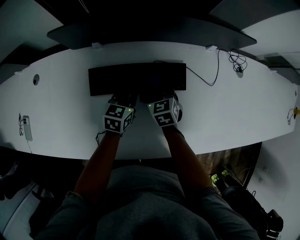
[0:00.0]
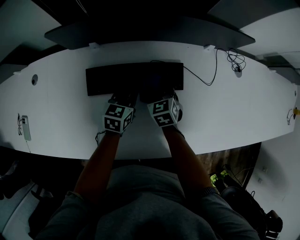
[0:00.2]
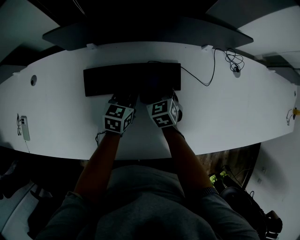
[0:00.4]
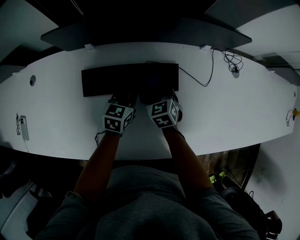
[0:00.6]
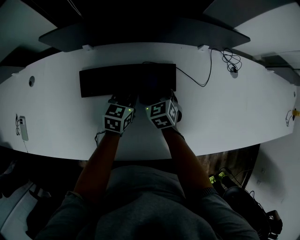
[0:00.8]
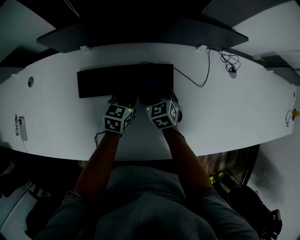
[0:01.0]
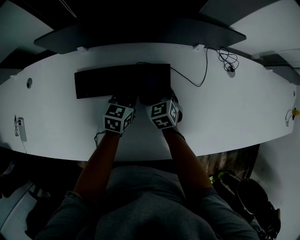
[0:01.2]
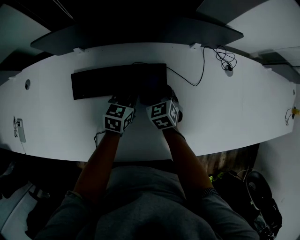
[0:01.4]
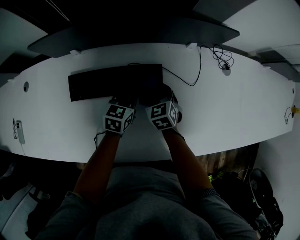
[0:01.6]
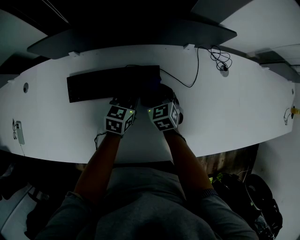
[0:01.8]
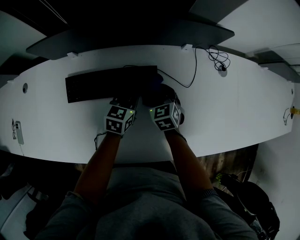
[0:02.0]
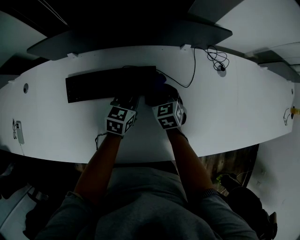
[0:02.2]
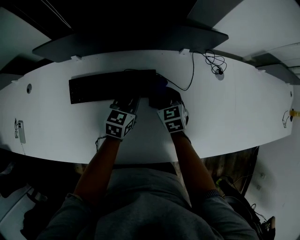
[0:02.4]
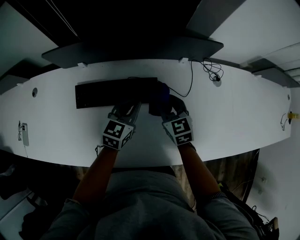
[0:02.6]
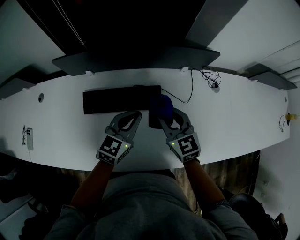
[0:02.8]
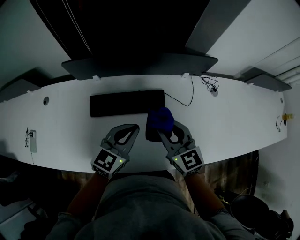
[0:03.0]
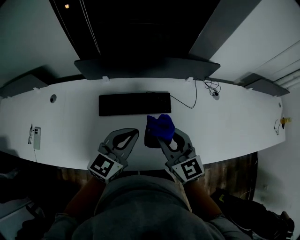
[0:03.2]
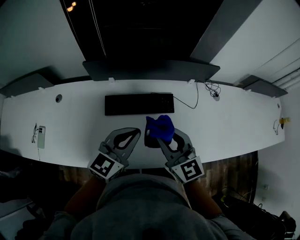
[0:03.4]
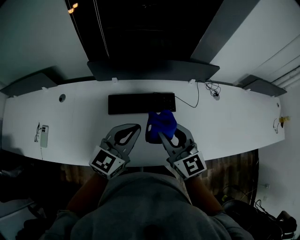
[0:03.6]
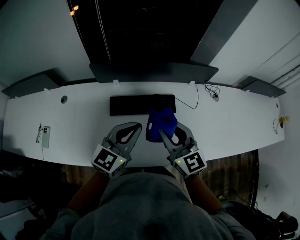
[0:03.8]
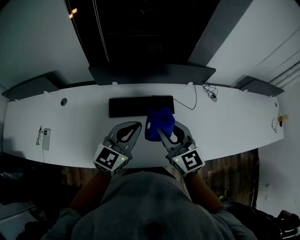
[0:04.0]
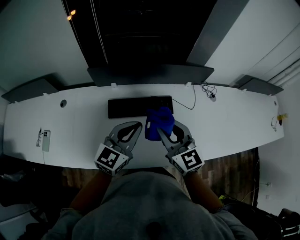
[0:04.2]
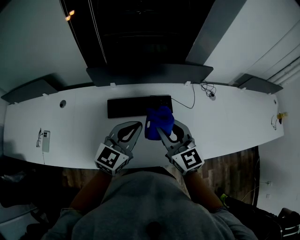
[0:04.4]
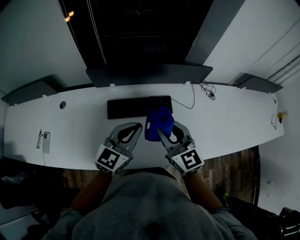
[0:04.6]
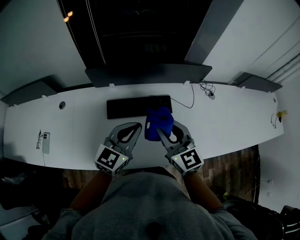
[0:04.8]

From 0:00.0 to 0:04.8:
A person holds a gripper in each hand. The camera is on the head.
From 0:00.0 to 0:01.6: Both grippers travel together to the right, roughly 10 cm.
From 0:01.6 to 0:03.2: Both grippers travel together upward and backward, roughly 30 cm. The left gripper swivels about 20 degrees. The right gripper tilts its fingers approximately 30 degrees upward.
From 0:03.2 to 0:04.8: The grippers both shift upward by roughly 5 cm.

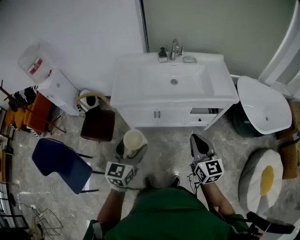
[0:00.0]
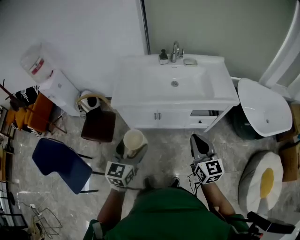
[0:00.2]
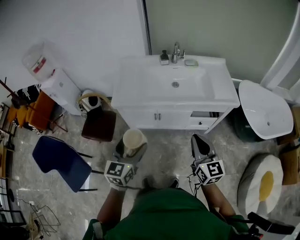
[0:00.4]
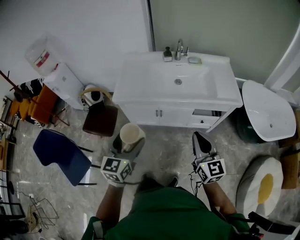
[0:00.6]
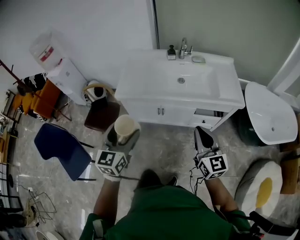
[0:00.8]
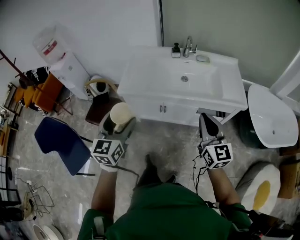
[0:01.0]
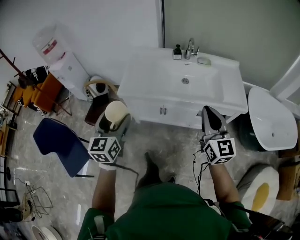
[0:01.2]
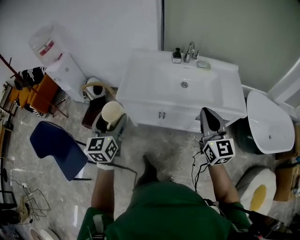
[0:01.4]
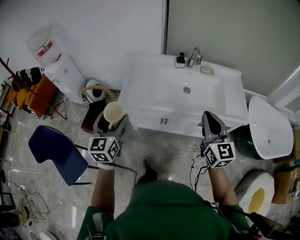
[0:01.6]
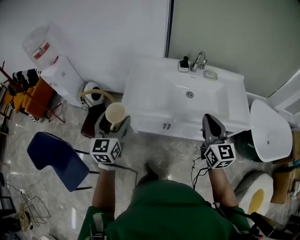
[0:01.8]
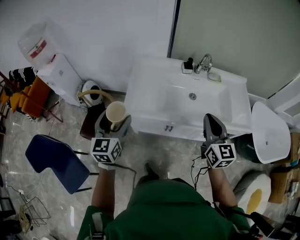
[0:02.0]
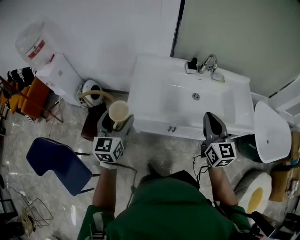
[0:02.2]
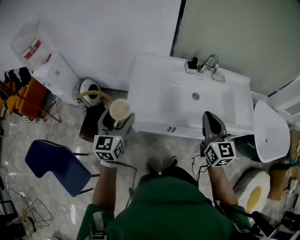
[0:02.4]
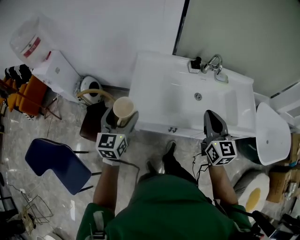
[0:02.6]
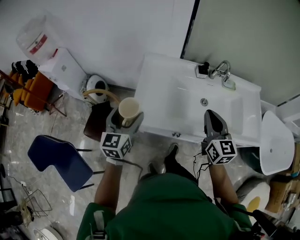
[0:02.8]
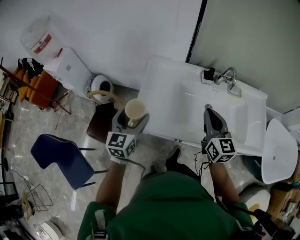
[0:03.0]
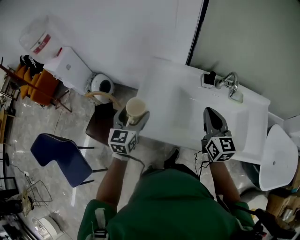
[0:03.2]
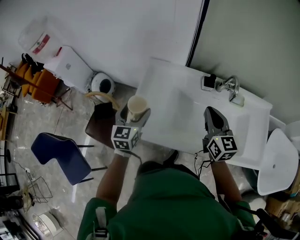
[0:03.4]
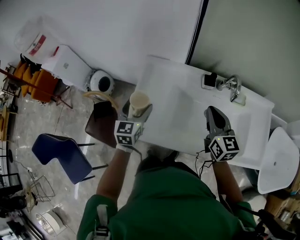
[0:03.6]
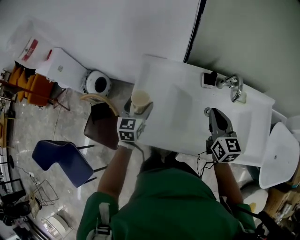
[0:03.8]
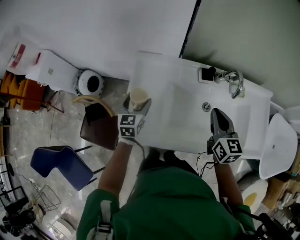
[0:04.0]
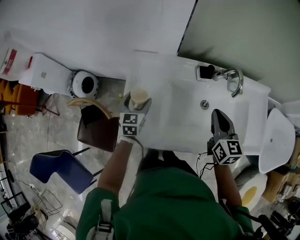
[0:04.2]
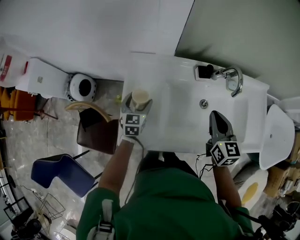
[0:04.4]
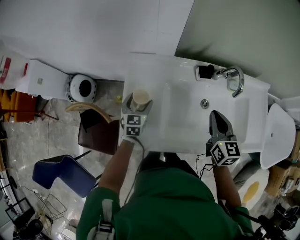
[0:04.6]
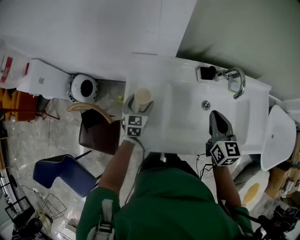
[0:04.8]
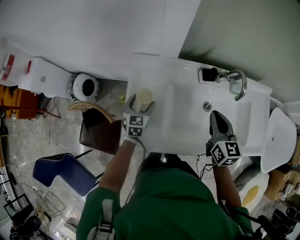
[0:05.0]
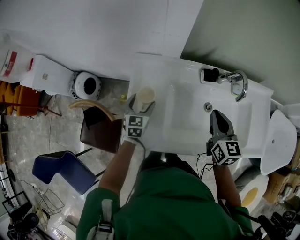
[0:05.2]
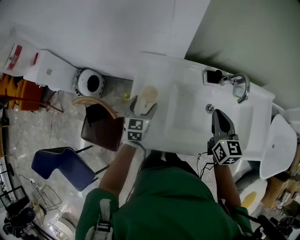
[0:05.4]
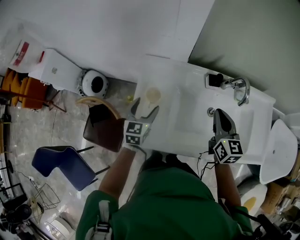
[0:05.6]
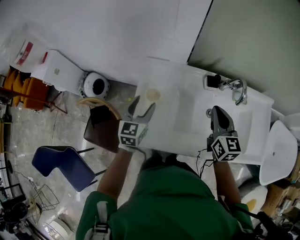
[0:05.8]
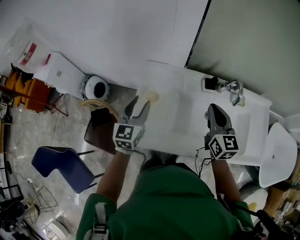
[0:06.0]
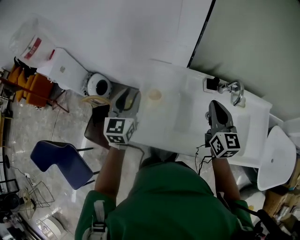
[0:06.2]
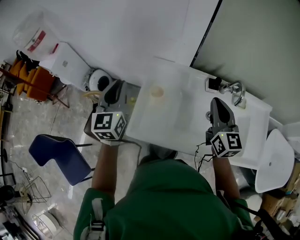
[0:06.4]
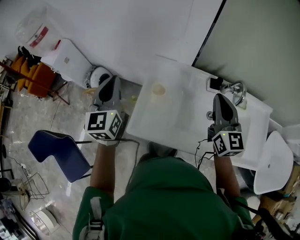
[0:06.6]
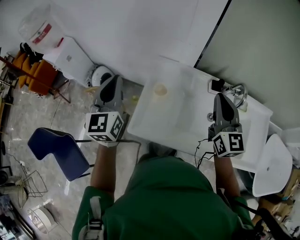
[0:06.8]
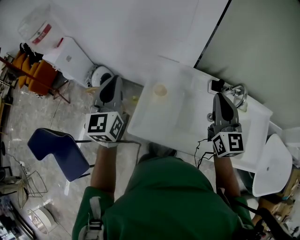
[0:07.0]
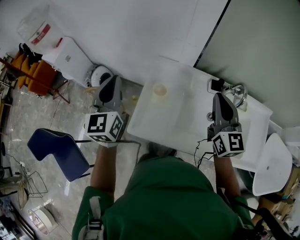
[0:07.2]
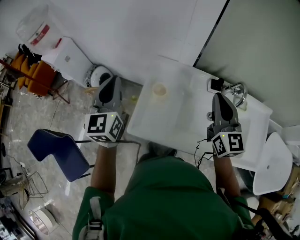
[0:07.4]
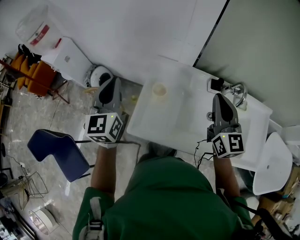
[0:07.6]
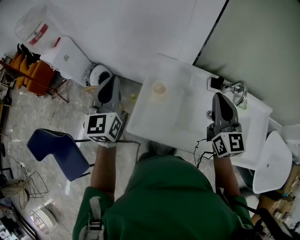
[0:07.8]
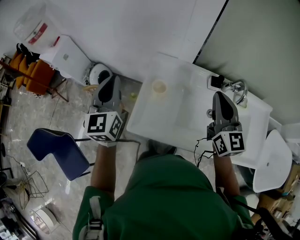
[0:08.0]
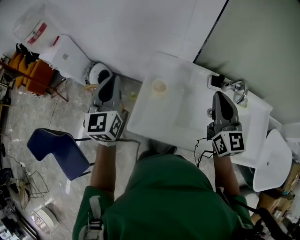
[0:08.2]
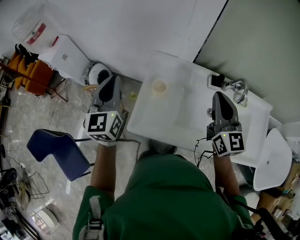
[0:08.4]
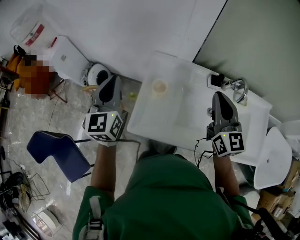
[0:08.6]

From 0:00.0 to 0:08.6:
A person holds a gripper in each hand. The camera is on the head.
From 0:00.0 to 0:01.4: The left gripper heads forward, to the left and upward, covering about 15 cm, and swivels some 20 degrees. The right gripper heads forward and upward, covering roughly 15 cm.
From 0:01.4 to 0:02.8: The right gripper moves forward and to the left, approximately 30 cm; the left gripper heads forward, covering roughly 25 cm.
From 0:02.8 to 0:04.4: The left gripper moves forward and downward, approximately 35 cm; the right gripper is displaced forward and downward by approximately 20 cm.
From 0:04.4 to 0:05.8: The right gripper ends up roughly 5 cm from where it was. The left gripper shifts about 10 cm upward.
From 0:05.8 to 0:07.2: The left gripper is displaced upward and to the left by about 25 cm, changes its angle by some 30 degrees, and closes. Meanwhile the right gripper goes about 10 cm upward and to the left.
From 0:07.2 to 0:08.6: There are only small adjustments of the grippers.

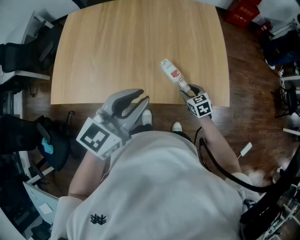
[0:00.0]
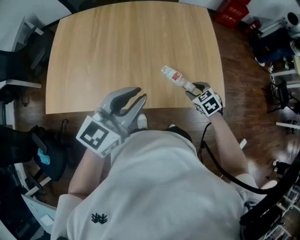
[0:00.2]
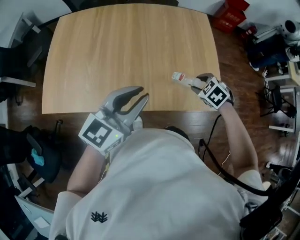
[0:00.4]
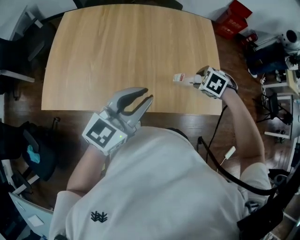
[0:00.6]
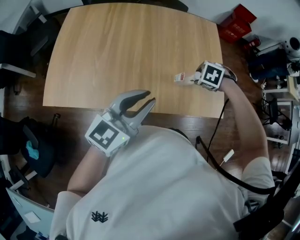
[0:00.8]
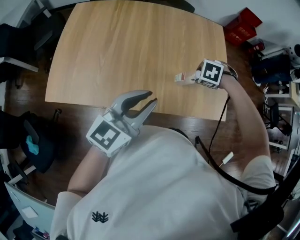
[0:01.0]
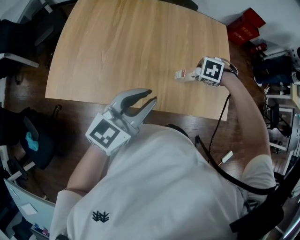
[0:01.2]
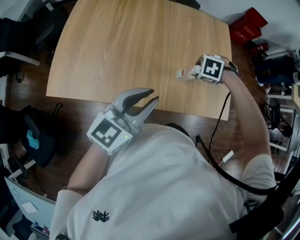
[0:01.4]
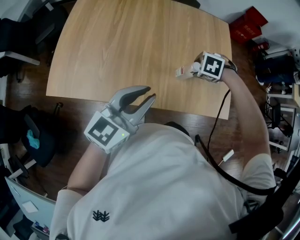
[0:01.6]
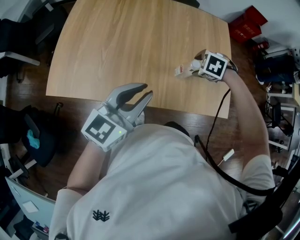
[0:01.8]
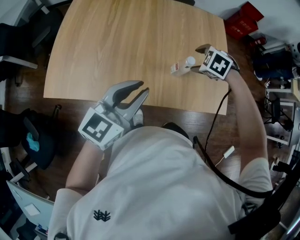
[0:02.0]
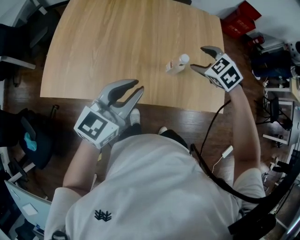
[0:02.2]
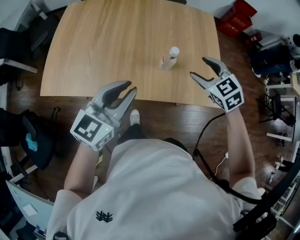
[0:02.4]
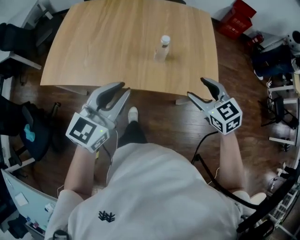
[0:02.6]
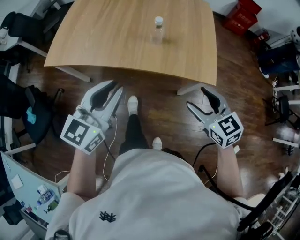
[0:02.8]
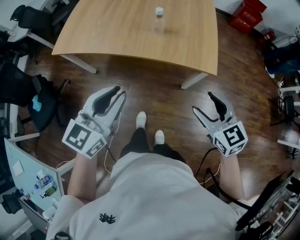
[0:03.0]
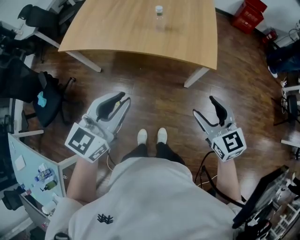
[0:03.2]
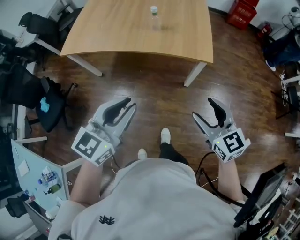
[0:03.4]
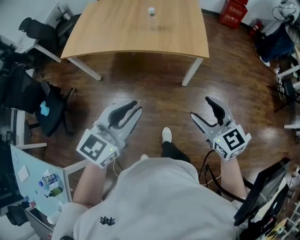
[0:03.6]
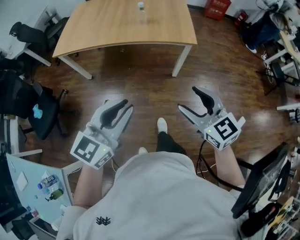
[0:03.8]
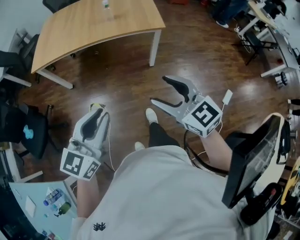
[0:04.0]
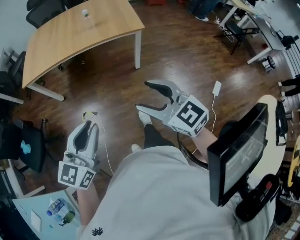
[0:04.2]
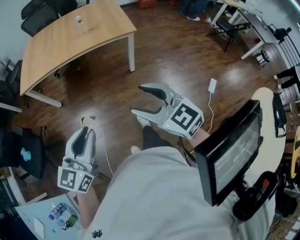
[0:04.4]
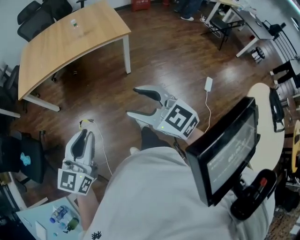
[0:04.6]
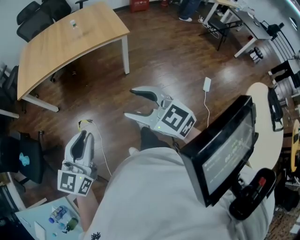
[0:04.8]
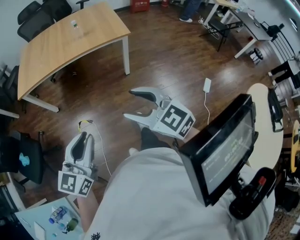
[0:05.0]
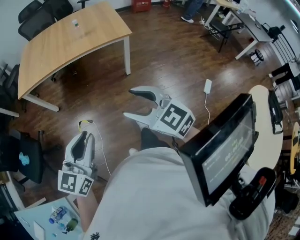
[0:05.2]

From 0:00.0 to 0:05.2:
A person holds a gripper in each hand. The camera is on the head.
From 0:00.0 to 0:01.8: The left gripper shifts by about 10 cm, while the right gripper travels upward by some 15 cm, and tilts its fingers approximately 40 degrees downward.
From 0:01.8 to 0:03.4: The right gripper changes place by roughly 50 cm, and tilts its fingers roughly 60 degrees upward; the left gripper changes place by some 35 cm.
From 0:03.4 to 0:05.2: The left gripper is displaced backward by about 20 cm. The right gripper shifts roughly 25 cm backward and to the left.

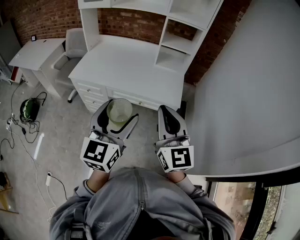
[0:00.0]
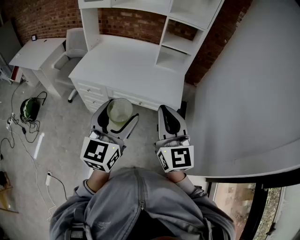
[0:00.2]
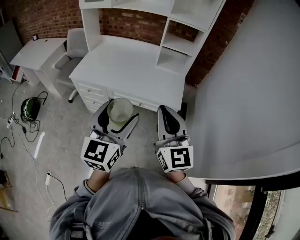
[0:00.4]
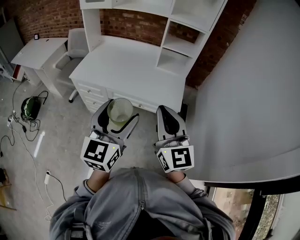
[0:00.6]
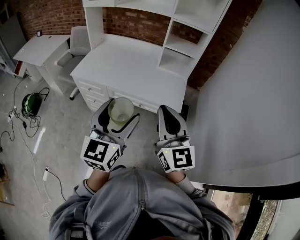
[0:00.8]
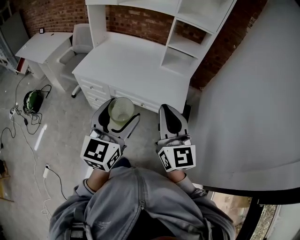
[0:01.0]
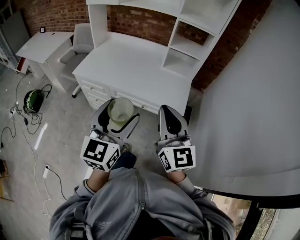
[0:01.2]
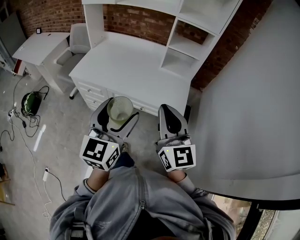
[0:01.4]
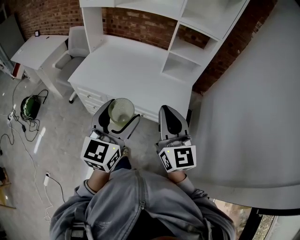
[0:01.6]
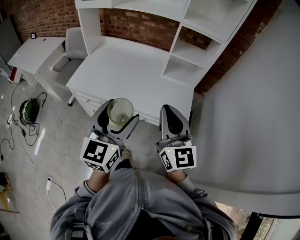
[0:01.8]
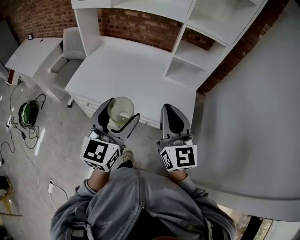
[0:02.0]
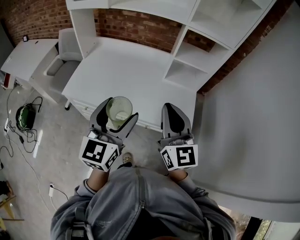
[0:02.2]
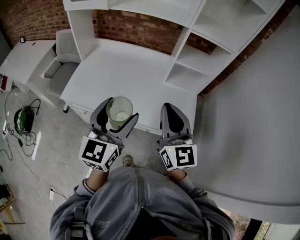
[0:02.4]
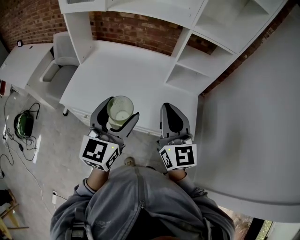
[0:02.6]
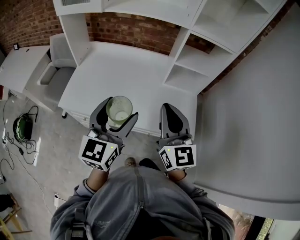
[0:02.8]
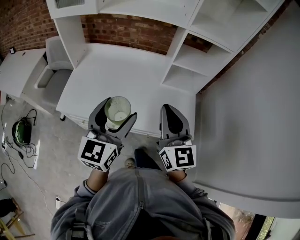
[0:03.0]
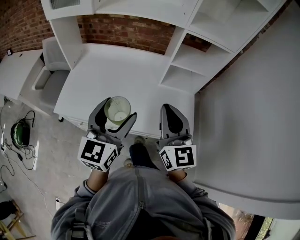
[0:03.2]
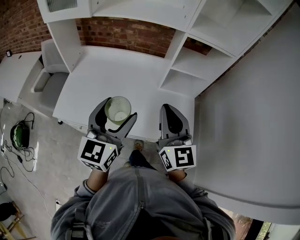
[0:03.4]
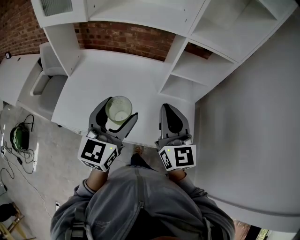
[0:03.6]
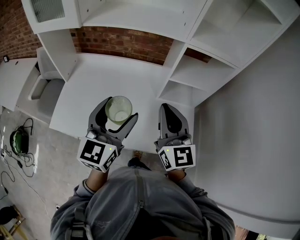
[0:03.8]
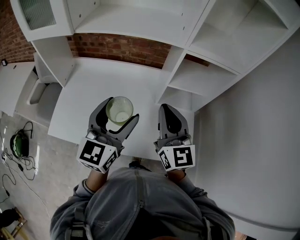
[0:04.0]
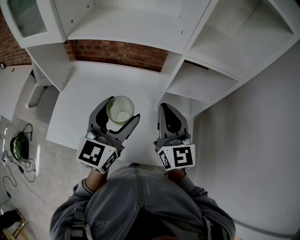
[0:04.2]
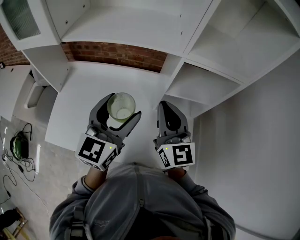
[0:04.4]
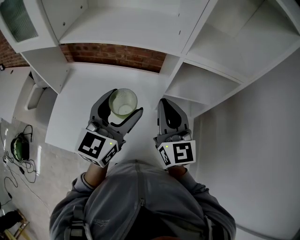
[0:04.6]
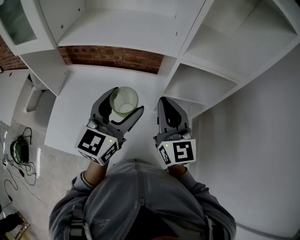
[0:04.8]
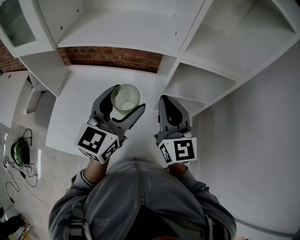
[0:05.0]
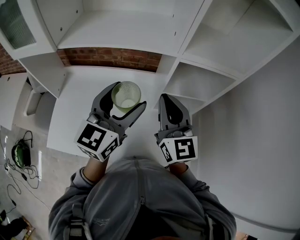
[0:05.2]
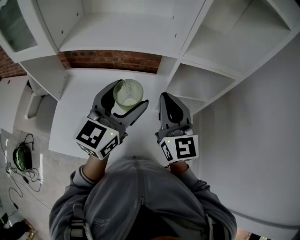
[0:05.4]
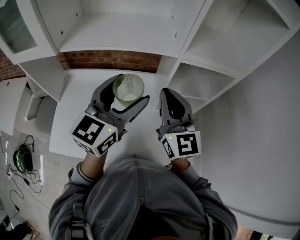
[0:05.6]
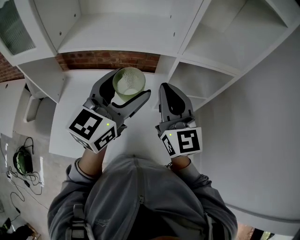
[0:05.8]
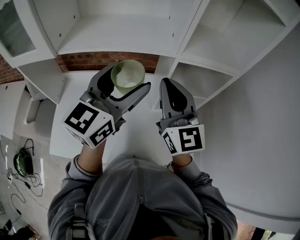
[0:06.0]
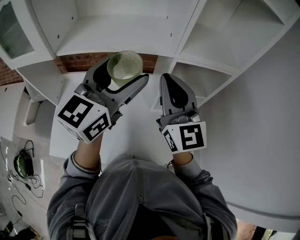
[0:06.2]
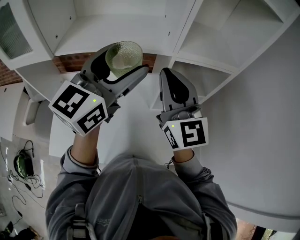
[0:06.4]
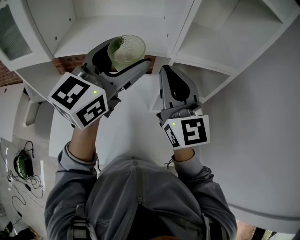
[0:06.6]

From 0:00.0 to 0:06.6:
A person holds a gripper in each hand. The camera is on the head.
From 0:00.0 to 0:01.6: Both grippers move forward, about 10 cm.
From 0:01.6 to 0:03.2: Both grippers travel together forward, approximately 25 cm.
From 0:03.2 to 0:05.0: Both grippers travel together forward, about 25 cm.
From 0:05.0 to 0:06.6: Both grippers move upward, about 15 cm.
